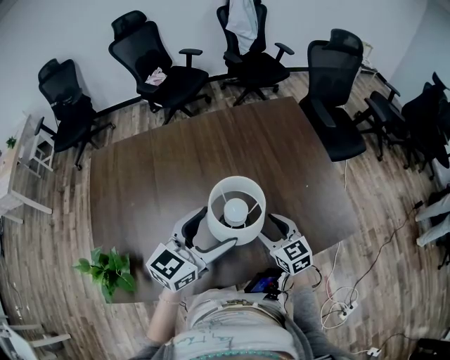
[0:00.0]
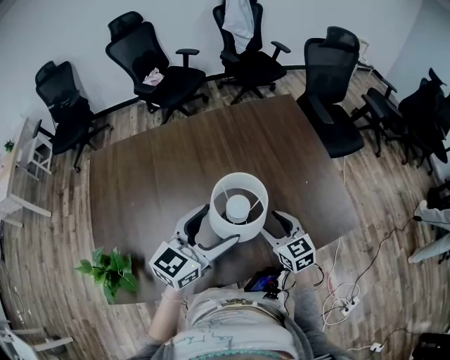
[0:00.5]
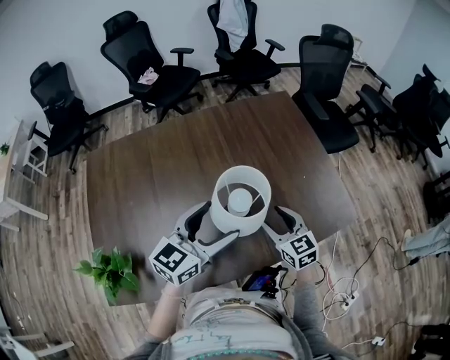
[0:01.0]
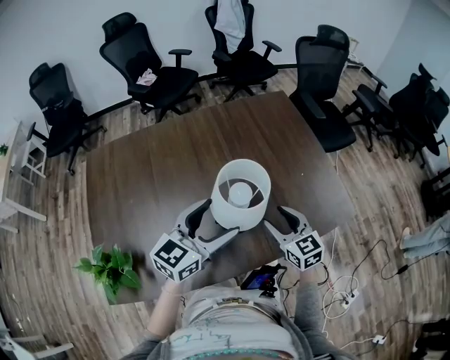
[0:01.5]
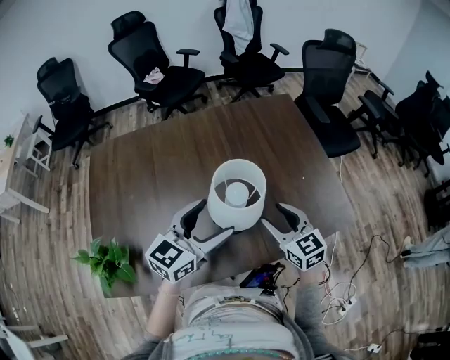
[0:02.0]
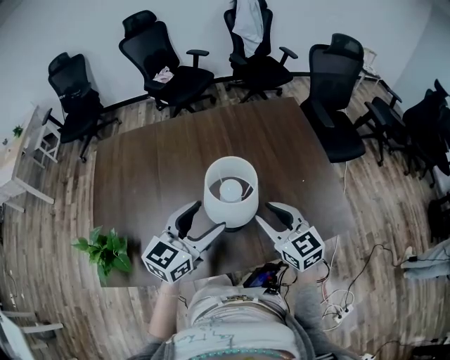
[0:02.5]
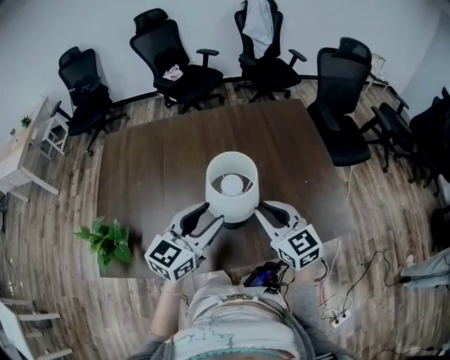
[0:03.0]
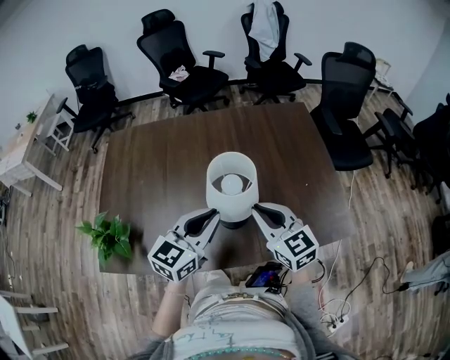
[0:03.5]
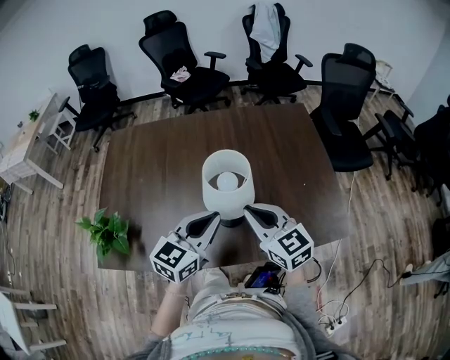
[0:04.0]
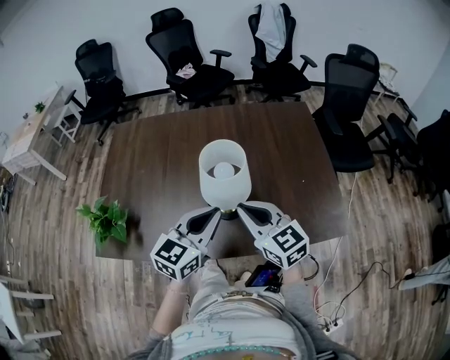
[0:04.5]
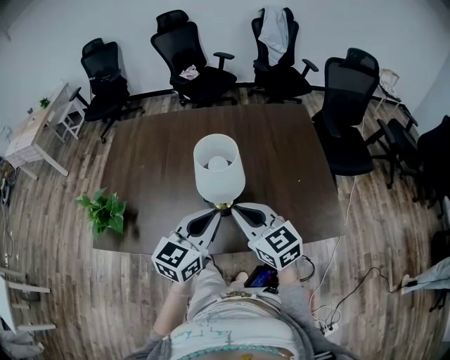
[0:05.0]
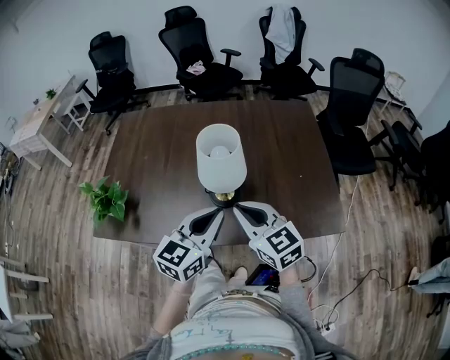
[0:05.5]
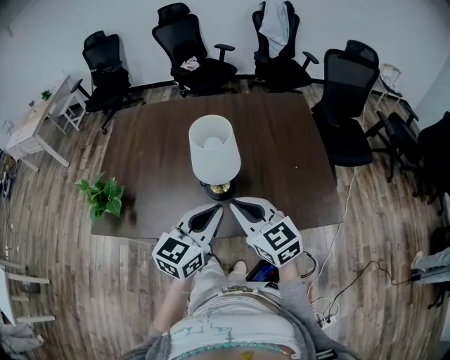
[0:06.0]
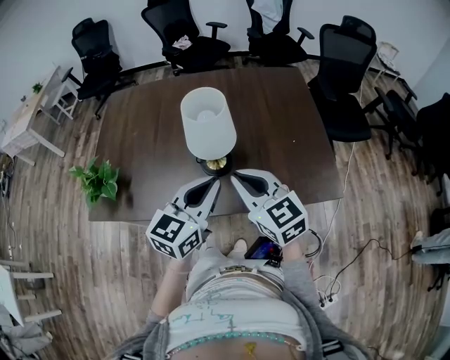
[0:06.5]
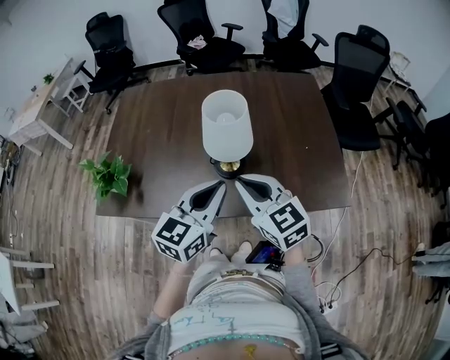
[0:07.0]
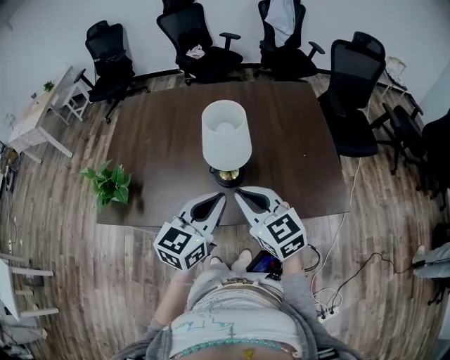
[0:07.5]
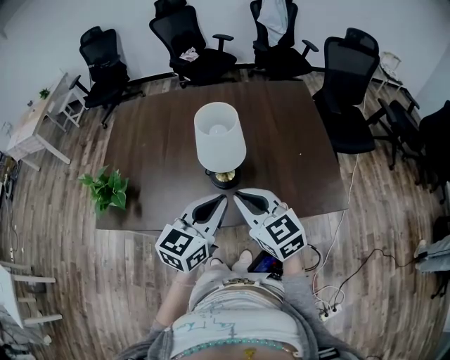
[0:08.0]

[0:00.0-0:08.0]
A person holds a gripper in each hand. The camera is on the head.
0:00.0 to 0:02.0: The right gripper heads upward, covering about 5 cm.
0:02.0 to 0:04.0: The left gripper shifts by approximately 5 cm, and closes up, while the right gripper goes approximately 10 cm upward, and closes its fingers.
0:04.0 to 0:06.0: The right gripper is displaced backward by roughly 10 cm. The left gripper travels backward and to the right by about 10 cm.
0:06.0 to 0:08.0: The grippers stay close to where they were, moving slightly.

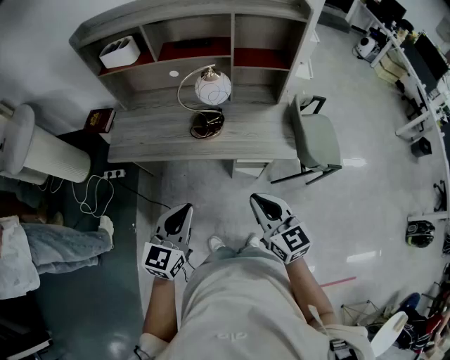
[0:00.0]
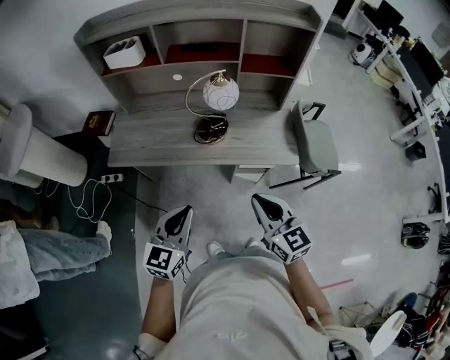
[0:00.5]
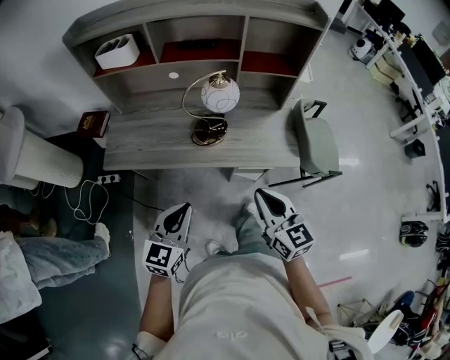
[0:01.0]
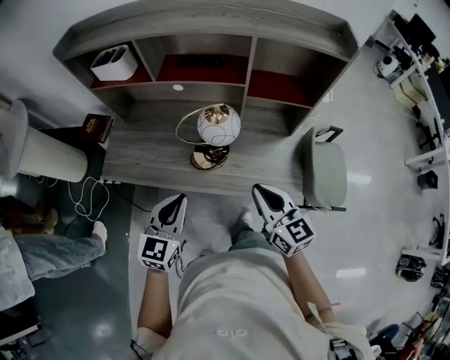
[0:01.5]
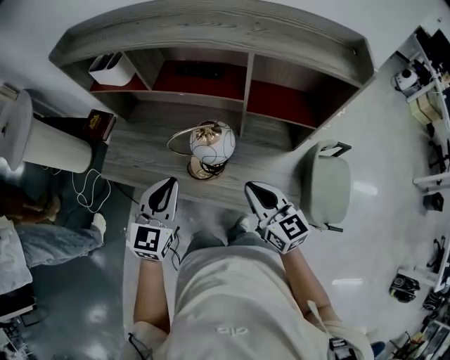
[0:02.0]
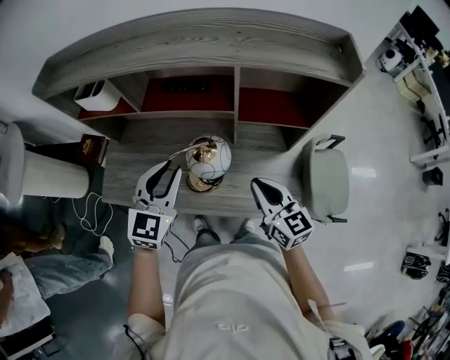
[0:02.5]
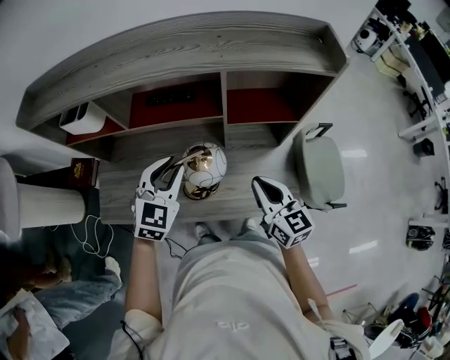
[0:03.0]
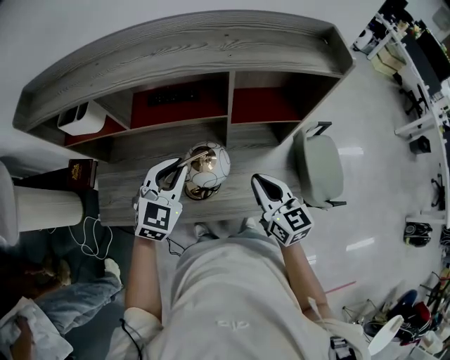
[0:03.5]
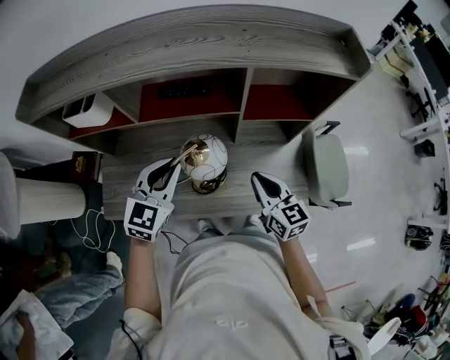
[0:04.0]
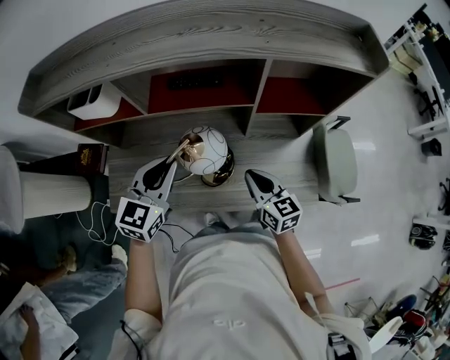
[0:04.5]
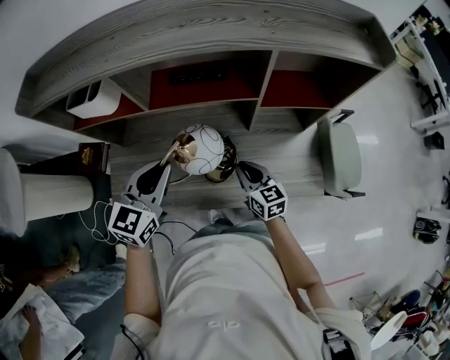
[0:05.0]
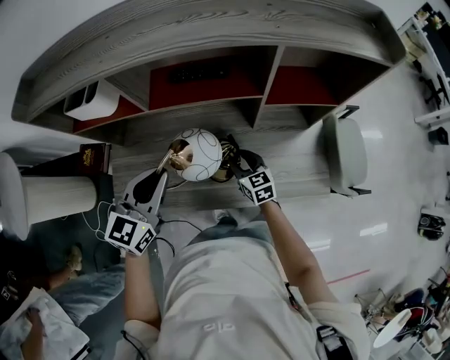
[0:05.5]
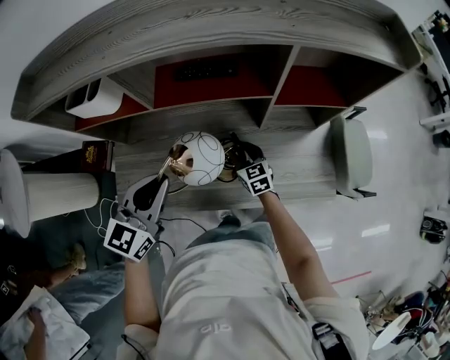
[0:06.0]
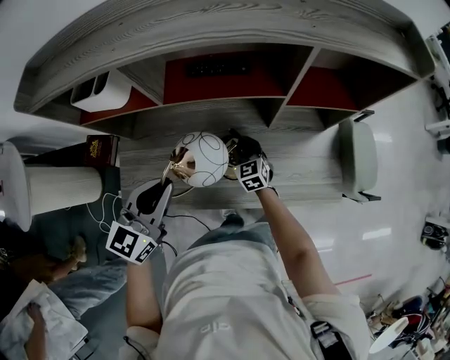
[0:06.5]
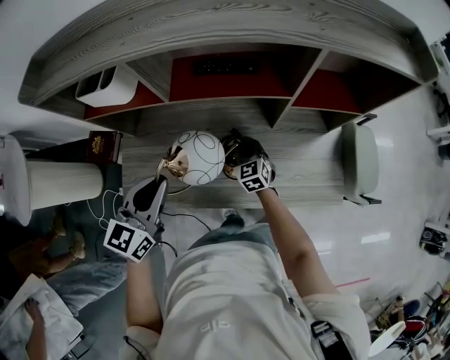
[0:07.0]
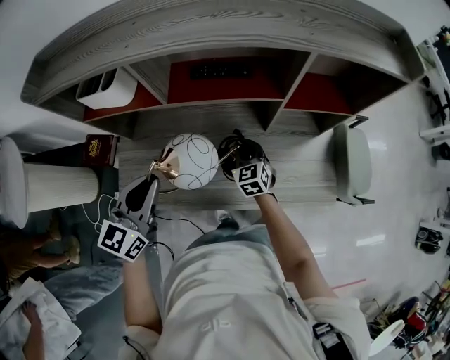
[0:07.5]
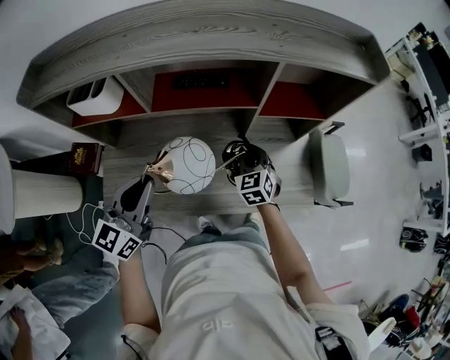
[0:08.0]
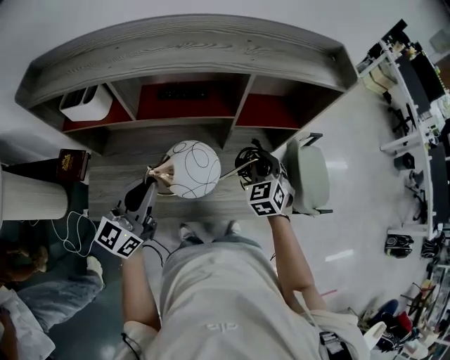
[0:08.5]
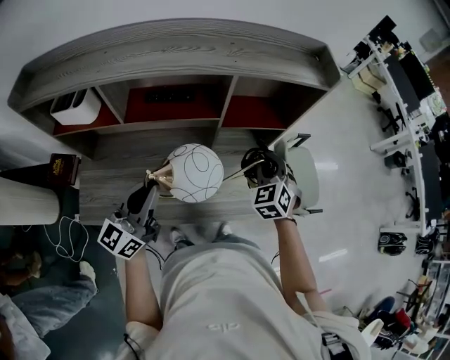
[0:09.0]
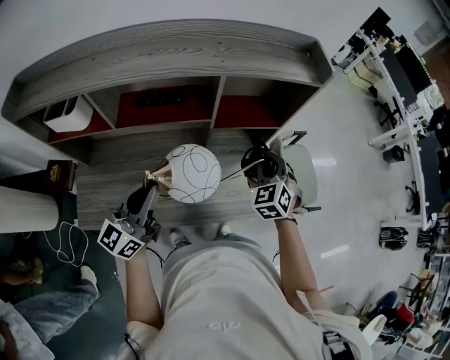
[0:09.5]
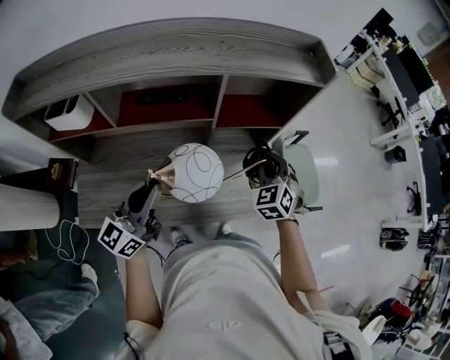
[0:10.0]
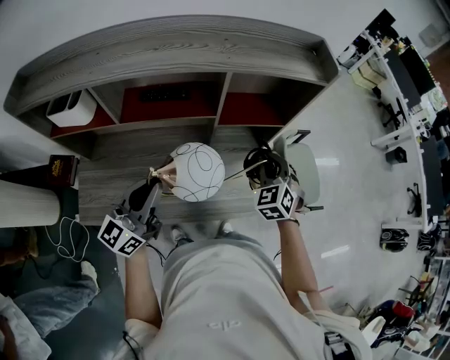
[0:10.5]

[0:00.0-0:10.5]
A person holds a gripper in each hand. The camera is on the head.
0:00.0 to 0:02.0: The two grippers go some 30 cm forward.
0:02.0 to 0:04.0: The left gripper goes roughly 15 cm forward, and changes its angle by about 20 degrees. The right gripper travels forward by roughly 5 cm, and changes its angle by approximately 20 degrees.
0:04.0 to 0:06.5: The right gripper goes roughly 30 cm downward, to the left and forward, and rotates roughly 30 degrees, while the left gripper heads to the left, covering roughly 10 cm.
0:06.5 to 0:08.5: The right gripper shifts about 30 cm to the right and upward, and turns by about 30 degrees, while the left gripper travels upward by some 5 cm, and turns by about 20 degrees.
0:08.5 to 0:10.5: Both grippers move to the right, approximately 5 cm.

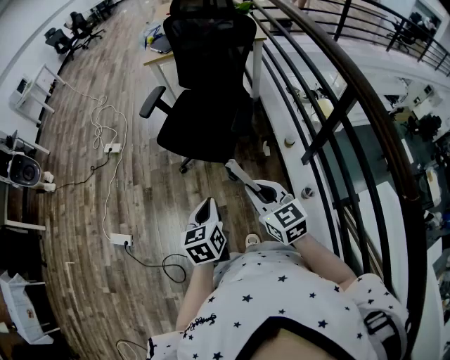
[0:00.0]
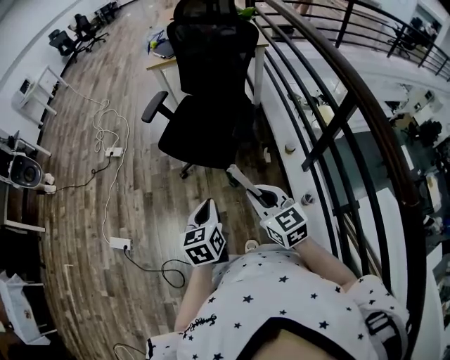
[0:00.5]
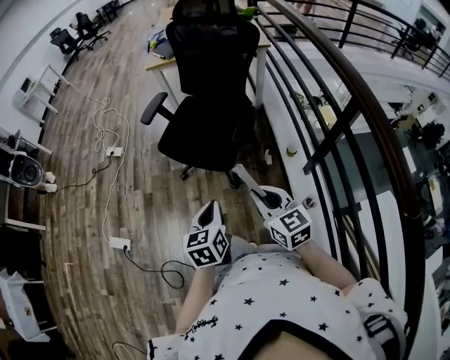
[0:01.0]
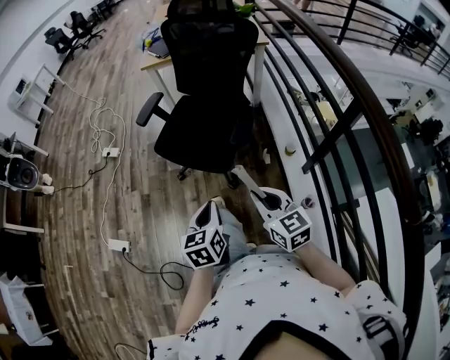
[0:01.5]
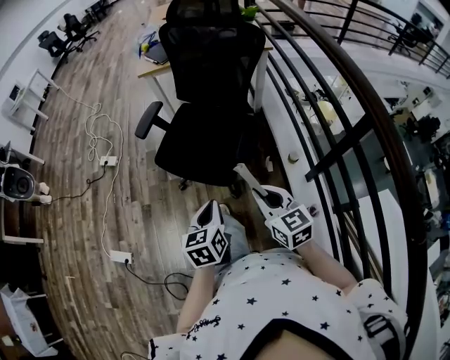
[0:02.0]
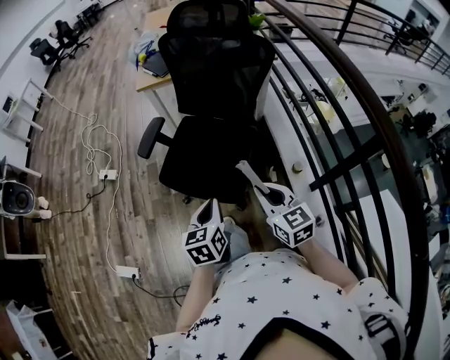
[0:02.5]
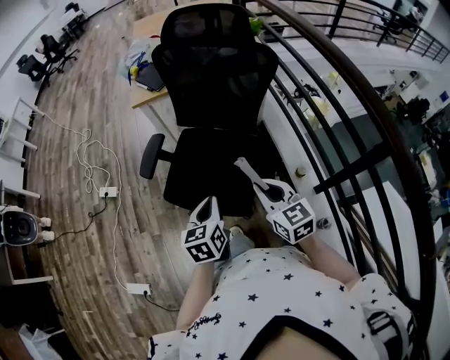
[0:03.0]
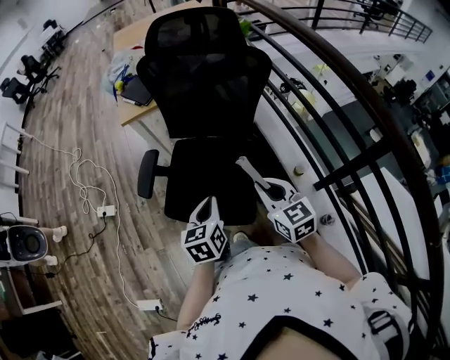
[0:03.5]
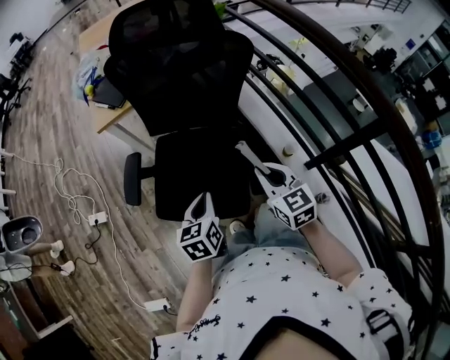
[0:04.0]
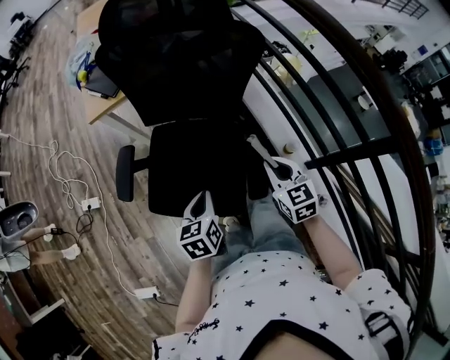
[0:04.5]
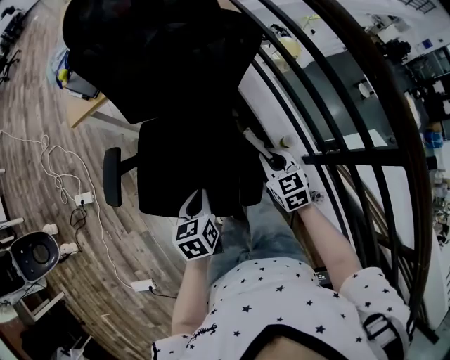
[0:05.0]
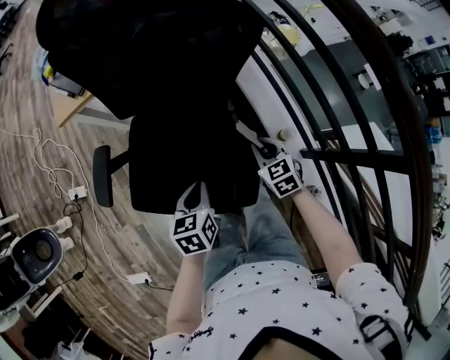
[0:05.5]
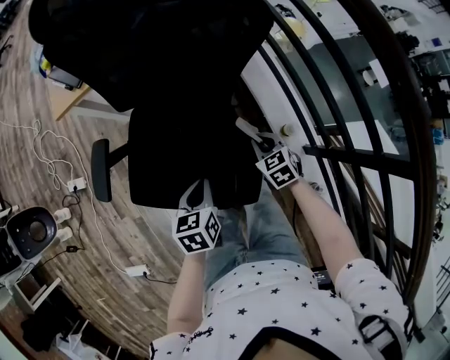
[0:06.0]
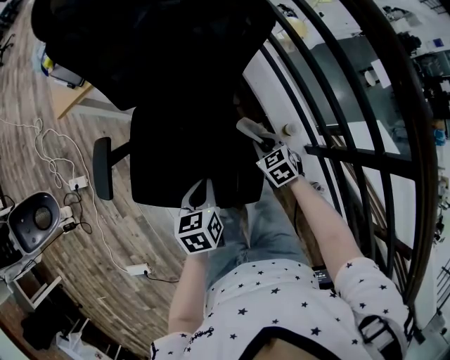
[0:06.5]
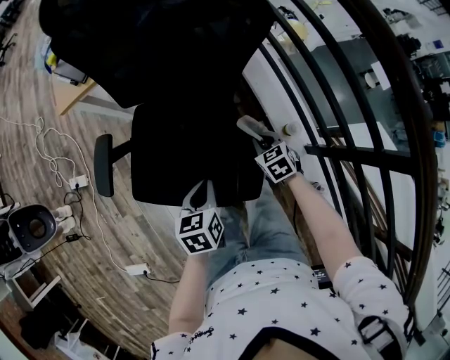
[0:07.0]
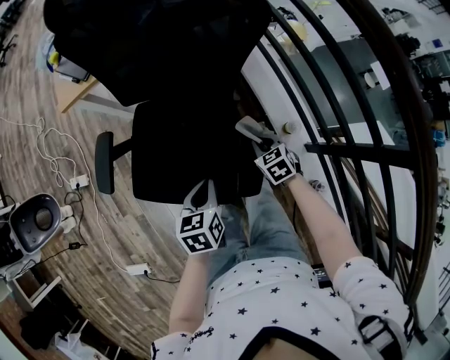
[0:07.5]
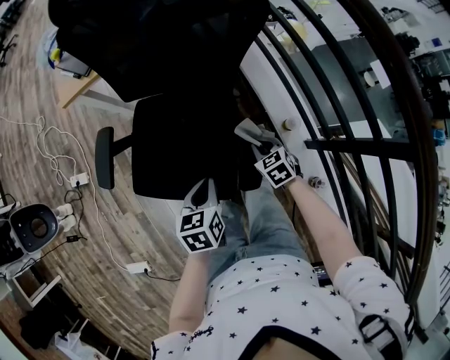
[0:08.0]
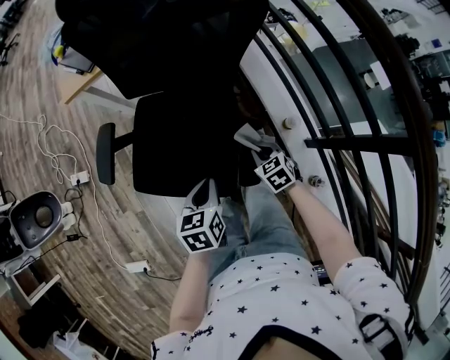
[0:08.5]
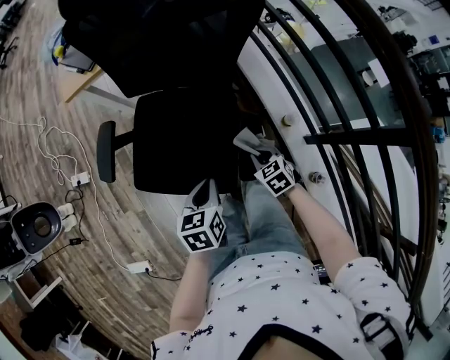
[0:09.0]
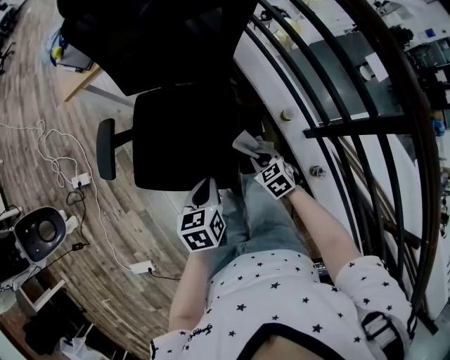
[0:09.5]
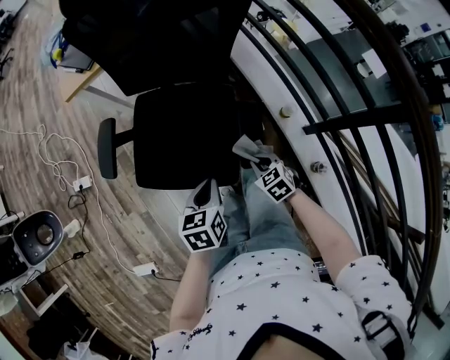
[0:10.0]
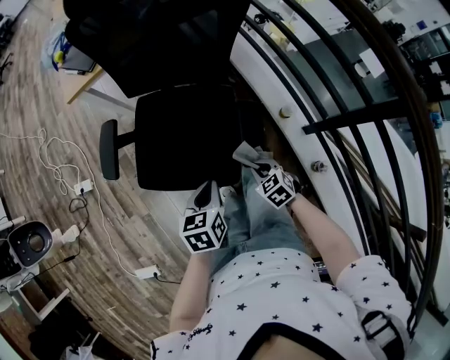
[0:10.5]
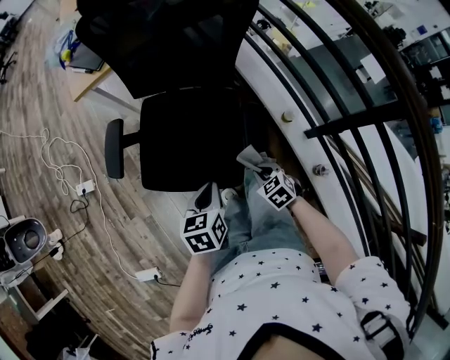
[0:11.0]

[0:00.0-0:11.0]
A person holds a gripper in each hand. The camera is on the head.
0:00.0 to 0:02.0: The grippers both shift forward by roughly 10 cm.
0:02.0 to 0:03.5: The grippers both shift forward by roughly 25 cm.
0:03.5 to 0:05.5: The left gripper is displaced downward, forward and to the right by roughly 15 cm. The right gripper heads downward, forward and to the right, covering roughly 30 cm, and turns by roughly 20 degrees.
0:05.5 to 0:07.5: The right gripper goes some 5 cm downward.
0:07.5 to 0:09.0: The right gripper heads backward, covering some 10 cm.
0:09.0 to 0:11.0: The right gripper shifts roughly 10 cm backward. The left gripper ends up roughly 5 cm from where it was.
